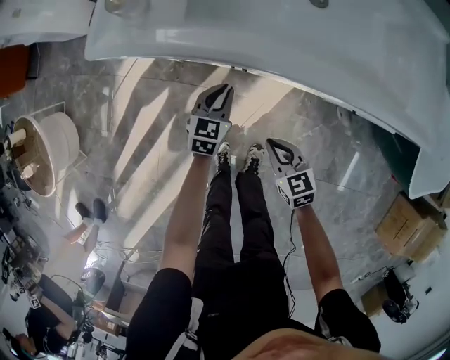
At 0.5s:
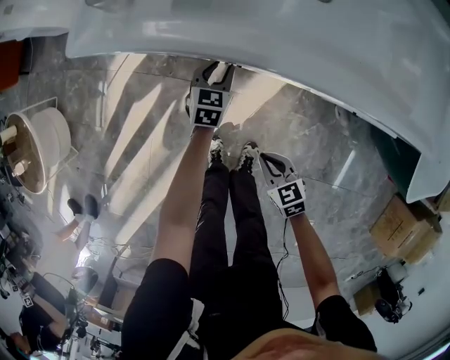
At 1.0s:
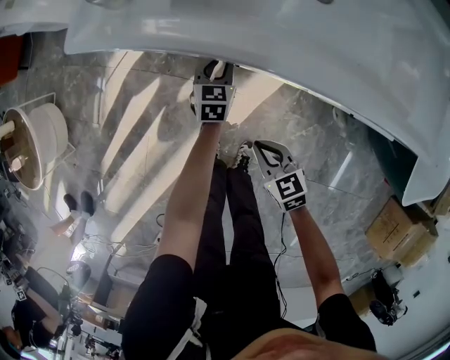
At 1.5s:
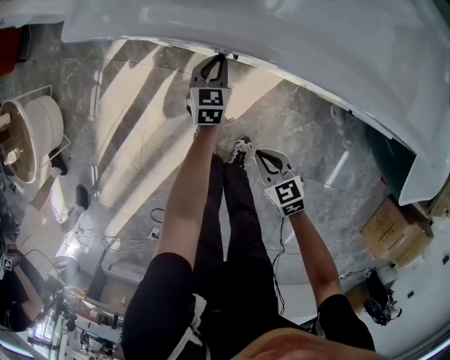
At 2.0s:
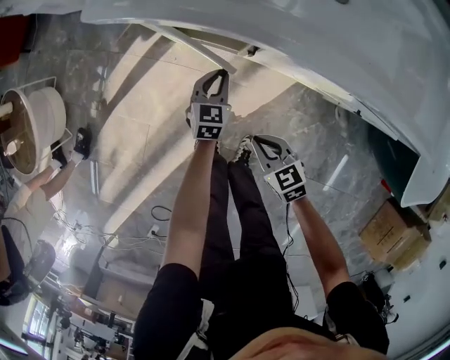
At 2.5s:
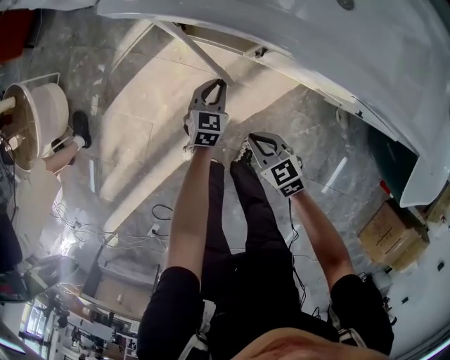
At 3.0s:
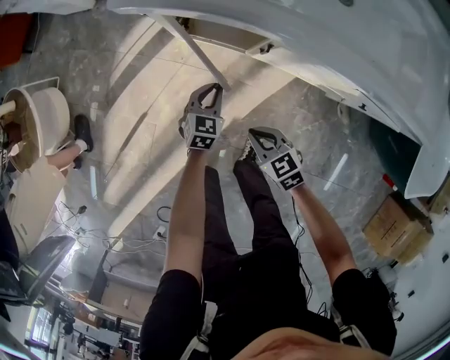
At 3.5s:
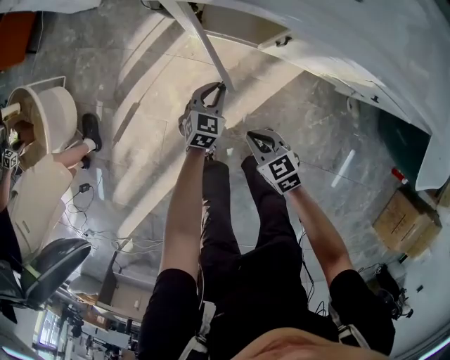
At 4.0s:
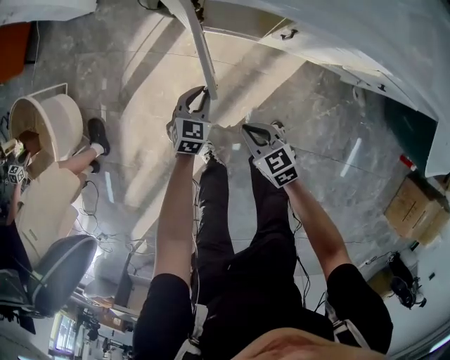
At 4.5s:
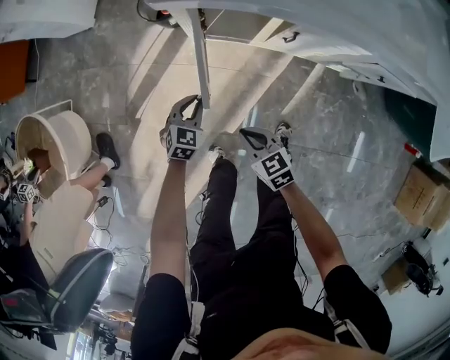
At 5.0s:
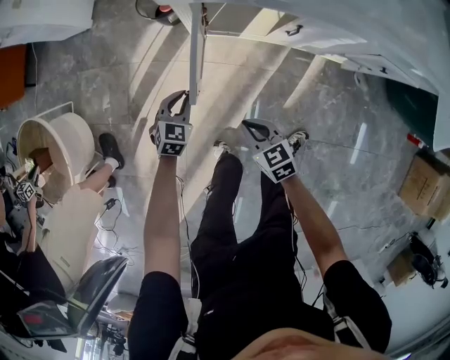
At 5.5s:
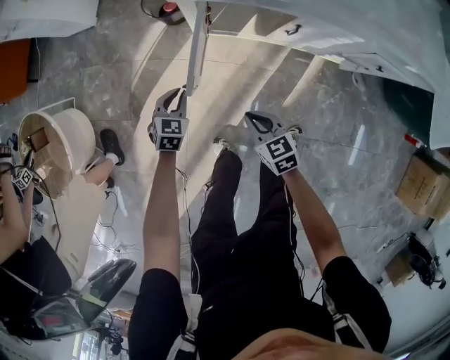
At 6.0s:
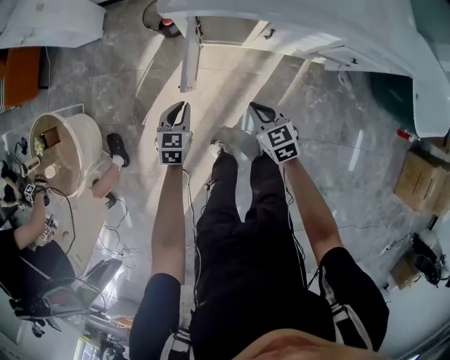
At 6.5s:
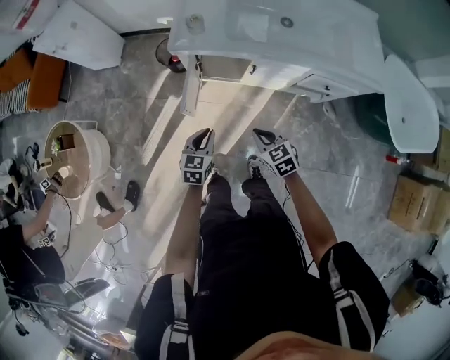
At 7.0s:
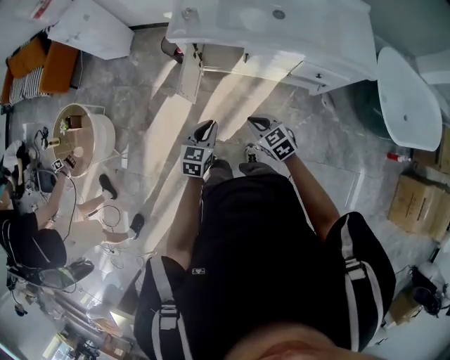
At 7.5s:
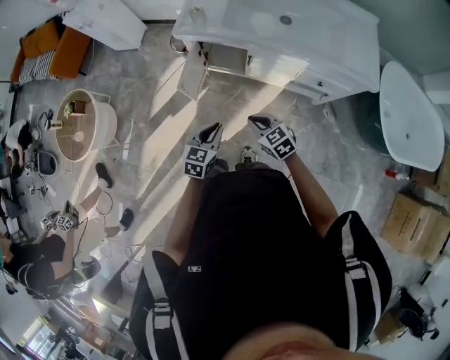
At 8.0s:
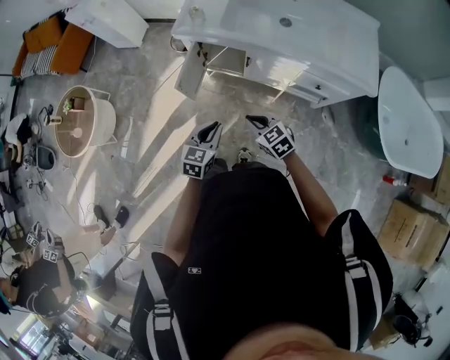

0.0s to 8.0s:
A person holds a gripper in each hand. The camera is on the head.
0.0s to 2.0s: The left gripper heads downward, covering approximately 5 cm, while the right gripper swings forward and backward, approximately 5 cm each way, with 2 reversals.
2.0s to 4.0s: The two grippers go roughly 20 cm to the left.
4.0s to 6.0s: The right gripper travels upward by about 10 cm. The left gripper shifts some 20 cm upward and to the left.
6.0s to 8.0s: The left gripper heads to the right, upward and backward, covering roughly 35 cm. Meanwhile the right gripper travels upward, to the right and backward by roughly 25 cm, and changes its angle by some 20 degrees.

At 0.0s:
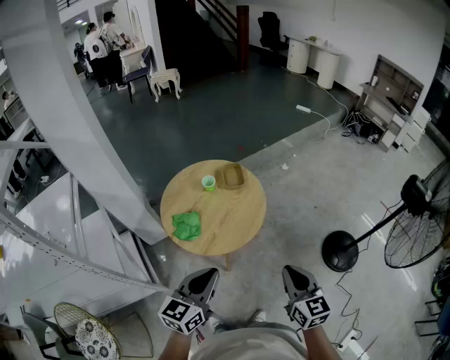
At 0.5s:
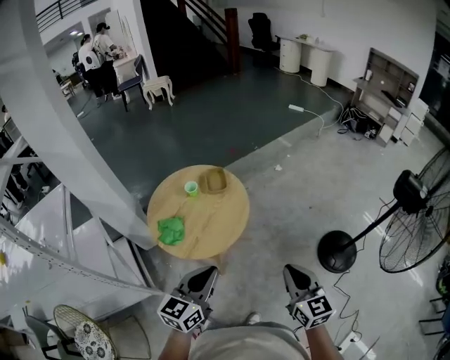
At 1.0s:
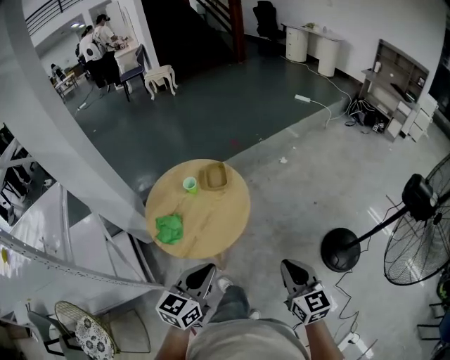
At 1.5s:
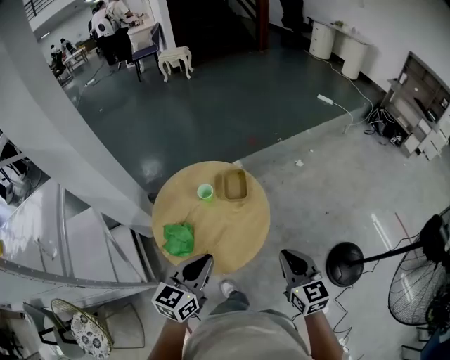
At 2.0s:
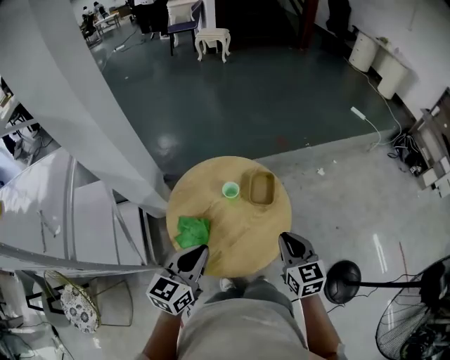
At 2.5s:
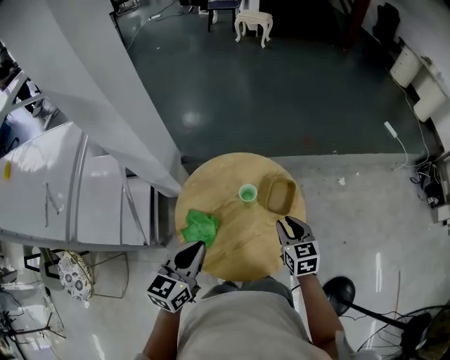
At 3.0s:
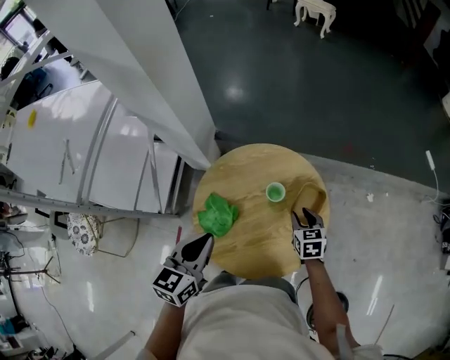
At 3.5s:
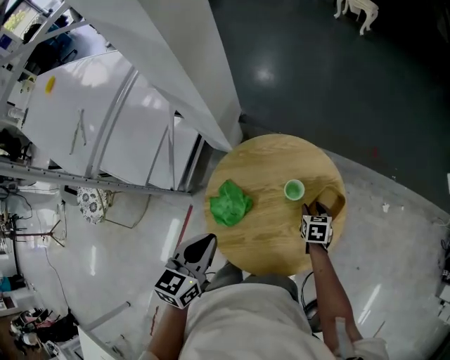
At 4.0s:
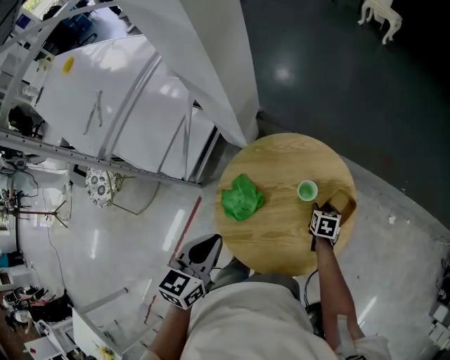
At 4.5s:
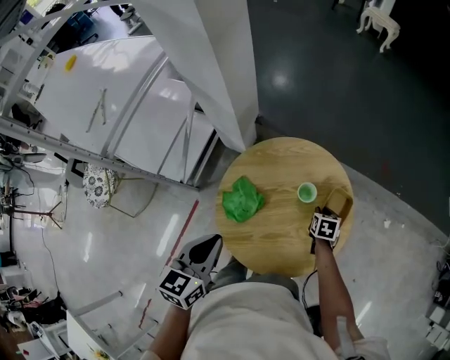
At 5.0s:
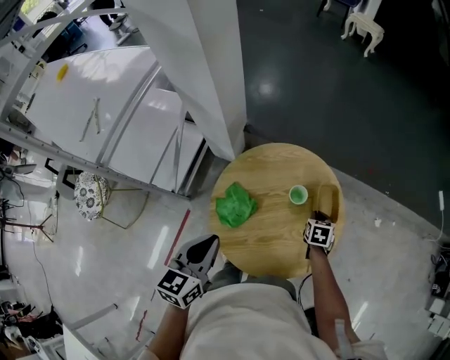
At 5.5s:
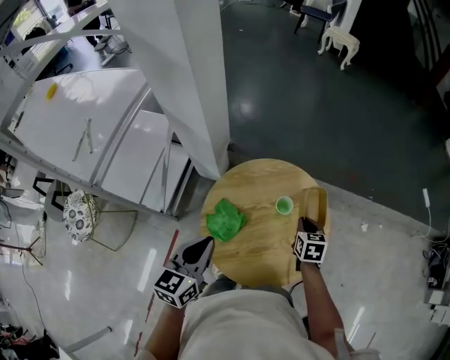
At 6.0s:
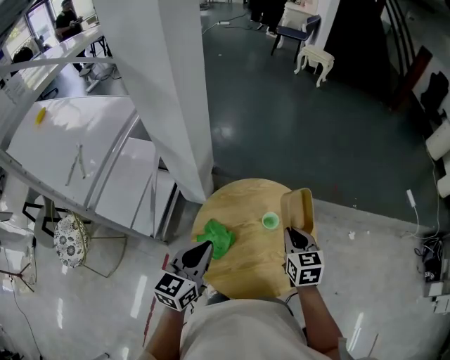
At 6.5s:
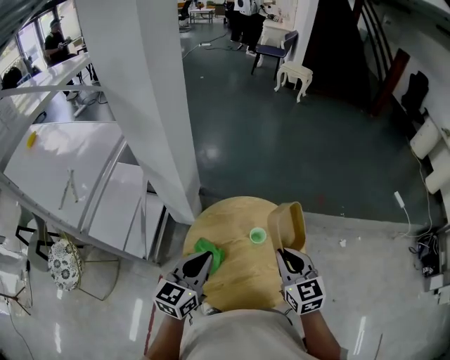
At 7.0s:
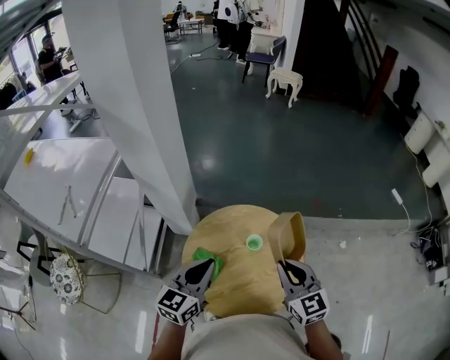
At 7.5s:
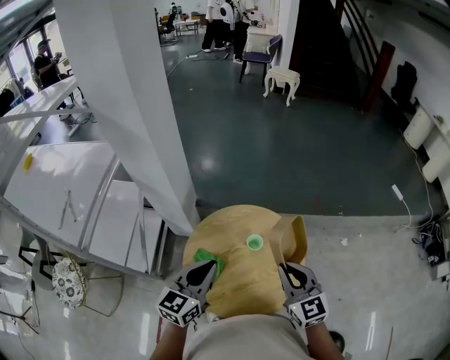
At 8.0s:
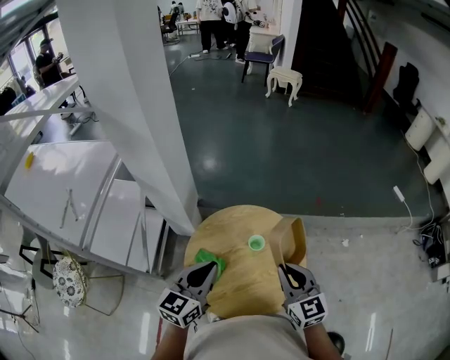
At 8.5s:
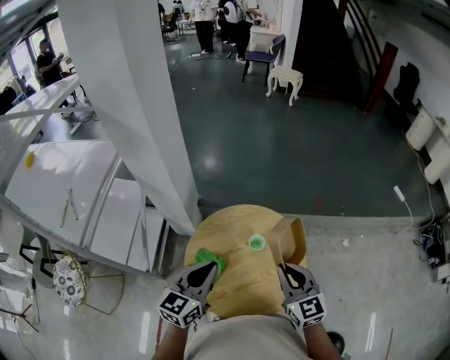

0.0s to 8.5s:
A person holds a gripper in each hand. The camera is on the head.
0.0s to 2.0s: Both grippers move forward, about 35 cm. The right gripper swivels approximately 20 degrees.
2.0s to 4.0s: The left gripper moves approximately 10 cm, and changes its angle by approximately 40 degrees; the right gripper is displaced downward by roughly 30 cm, tilts its fingers approximately 40 degrees downward, and opens.
4.0s to 6.5s: The right gripper is displaced upward by approximately 35 cm, points its fingers approximately 40 degrees further upward, and closes up. The left gripper travels upward and forward by roughly 10 cm, and swivels approximately 30 degrees.
6.5s to 8.5s: The grippers stay close to where they were, moving slightly.

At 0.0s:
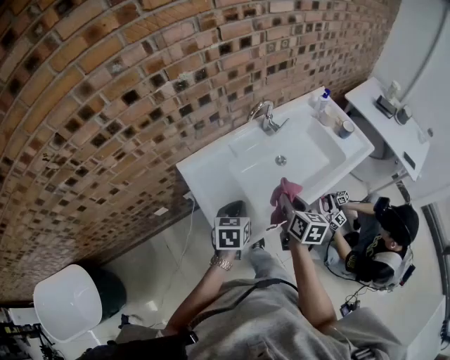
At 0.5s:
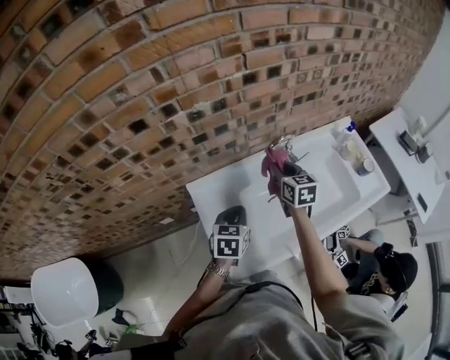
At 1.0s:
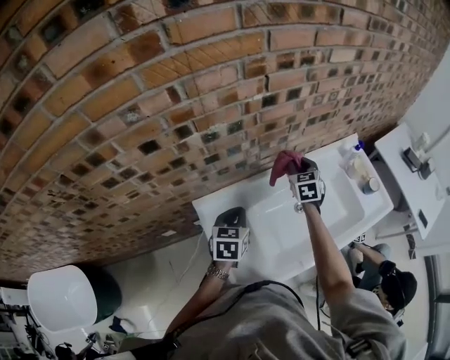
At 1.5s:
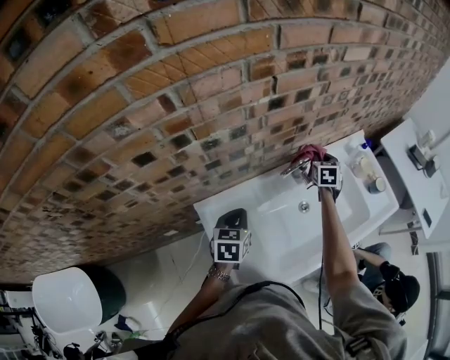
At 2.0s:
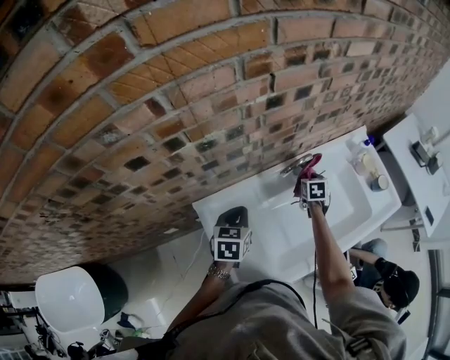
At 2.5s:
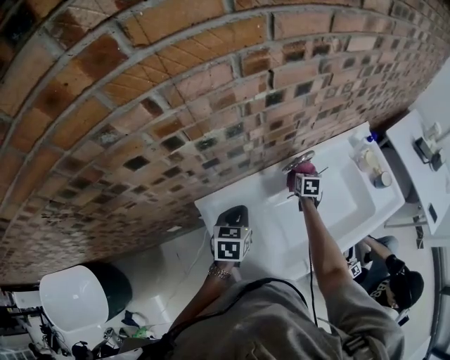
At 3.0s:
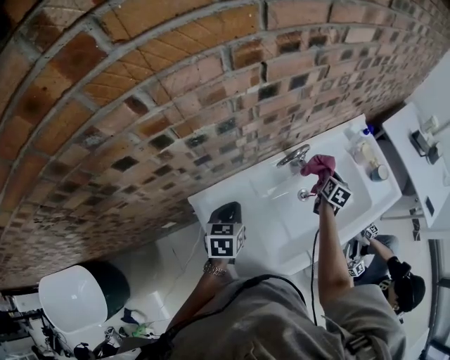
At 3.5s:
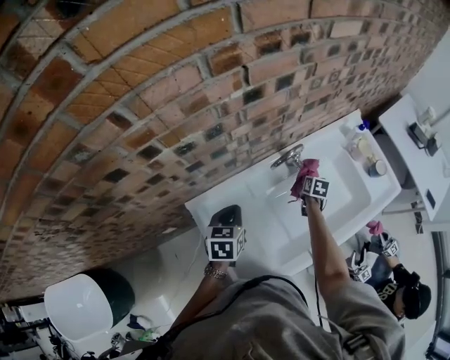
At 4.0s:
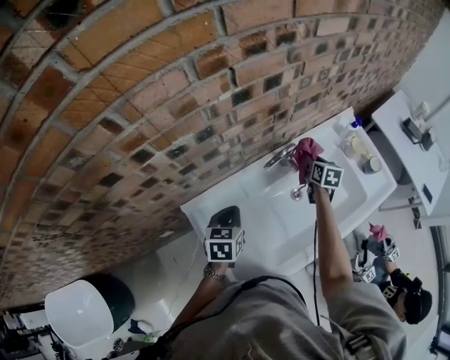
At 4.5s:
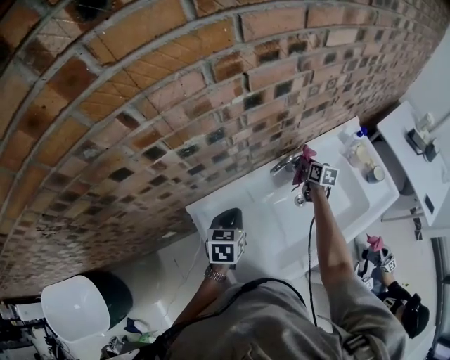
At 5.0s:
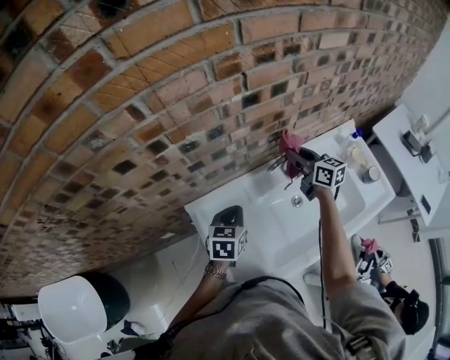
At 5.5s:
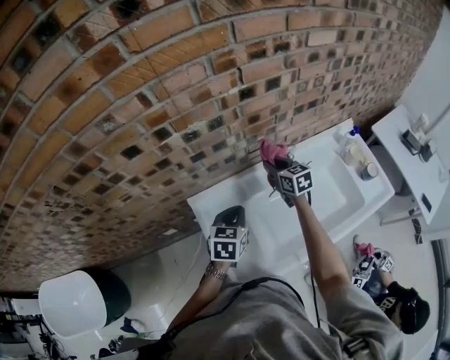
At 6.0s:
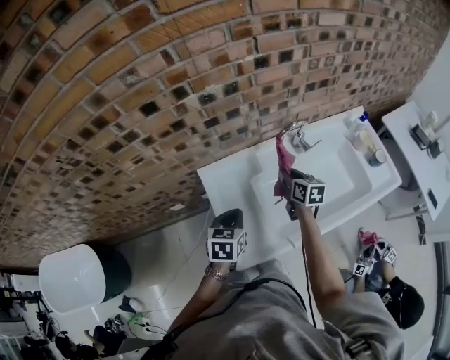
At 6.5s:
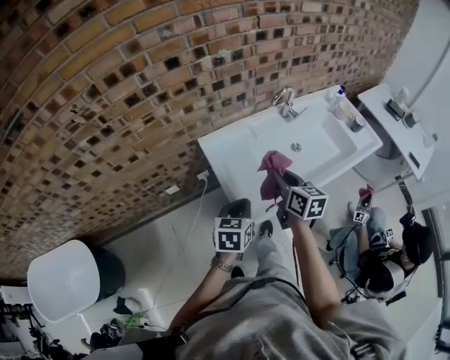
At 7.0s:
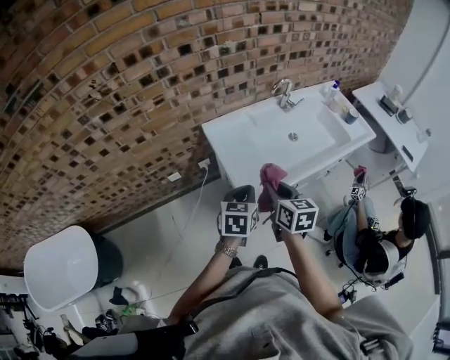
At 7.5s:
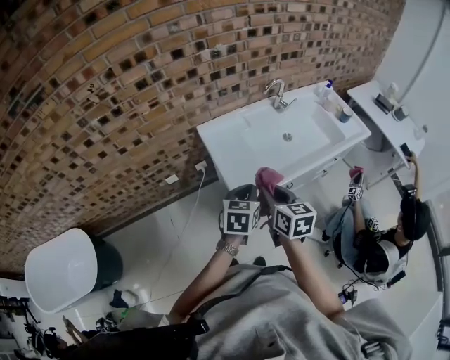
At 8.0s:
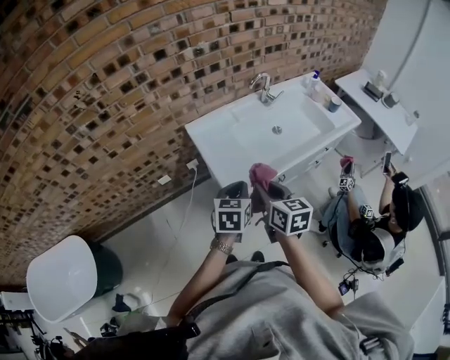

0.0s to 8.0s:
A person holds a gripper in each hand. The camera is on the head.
0.0s to 2.0s: The left gripper travels forward by roughly 20 cm. The right gripper shifts some 35 cm forward and downward, and swivels roughly 40 degrees.
2.0s to 4.0s: The right gripper travels to the right by some 5 cm, and rotates about 20 degrees.
4.0s to 6.0s: The left gripper is displaced backward by some 15 cm. The right gripper travels to the left and backward by about 25 cm, and rotates some 20 degrees.
6.0s to 8.0s: The right gripper goes about 40 cm backward. Meanwhile the left gripper moves backward, roughly 25 cm.

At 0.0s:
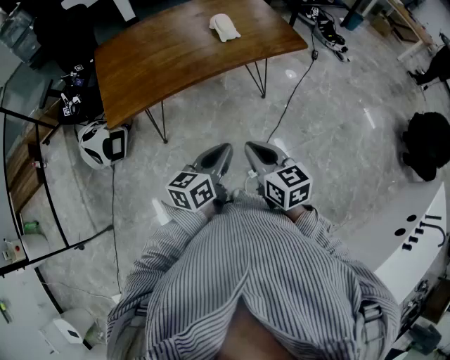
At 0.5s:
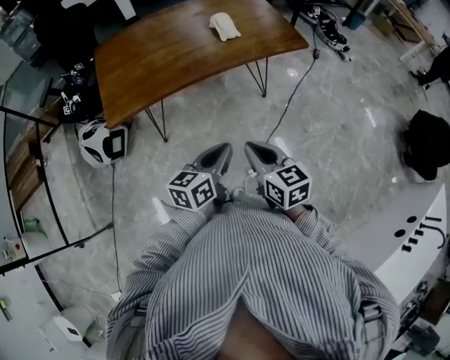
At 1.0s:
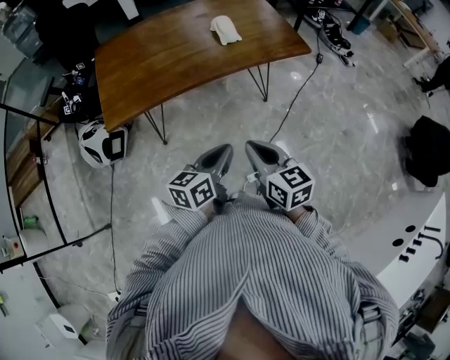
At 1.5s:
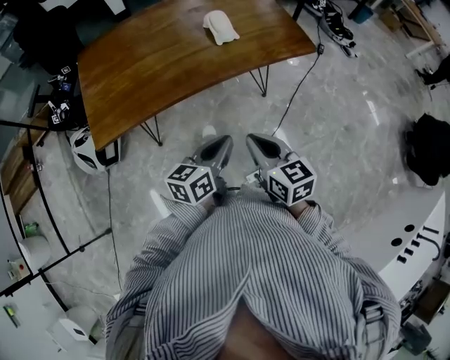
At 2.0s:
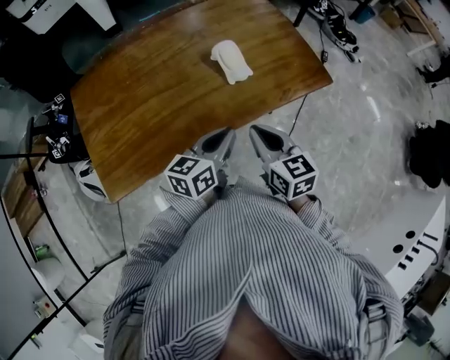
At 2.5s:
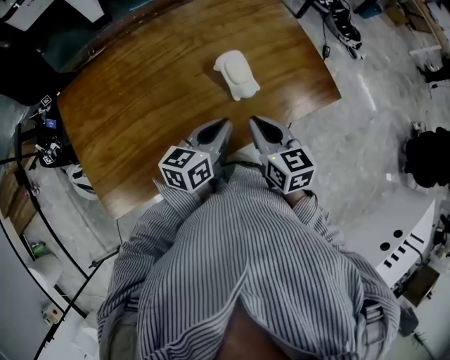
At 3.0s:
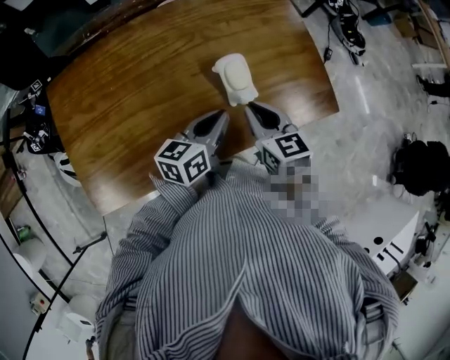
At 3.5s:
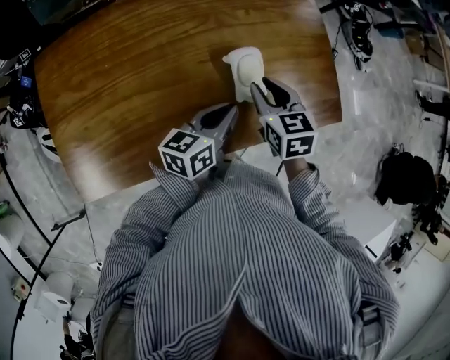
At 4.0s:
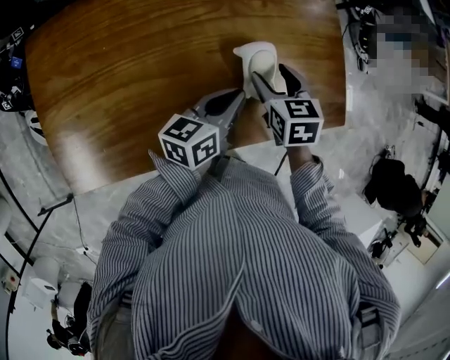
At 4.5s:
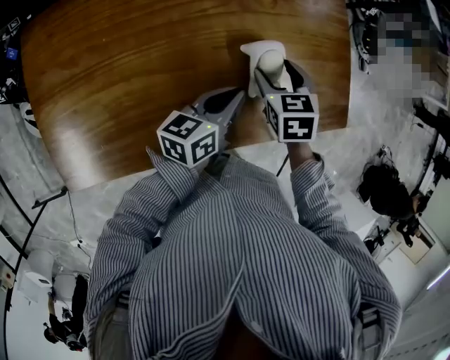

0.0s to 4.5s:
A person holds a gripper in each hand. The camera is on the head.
0.0s to 2.0s: The two grippers go approximately 35 cm forward.
2.0s to 4.5s: Both grippers move forward and downward, approximately 25 cm. The right gripper points its fingers roughly 30 degrees further downward, and opens its fingers.
